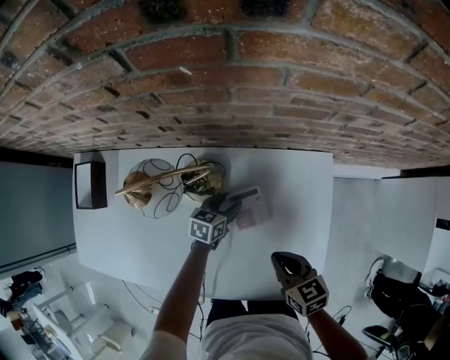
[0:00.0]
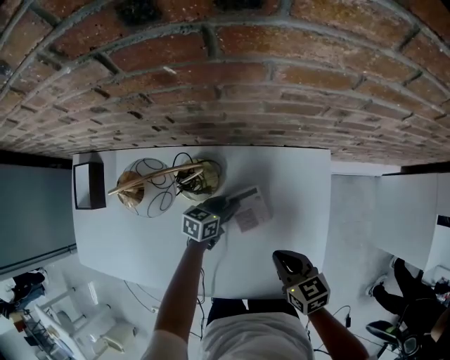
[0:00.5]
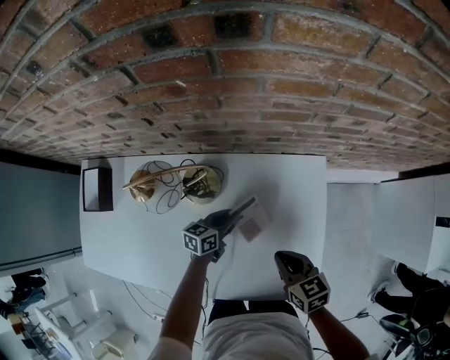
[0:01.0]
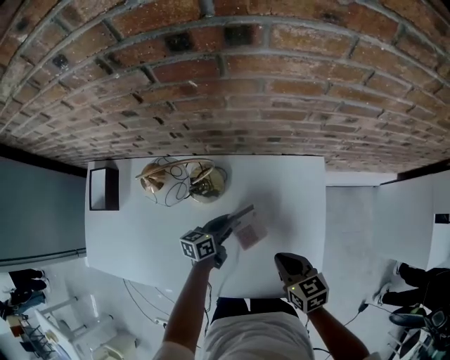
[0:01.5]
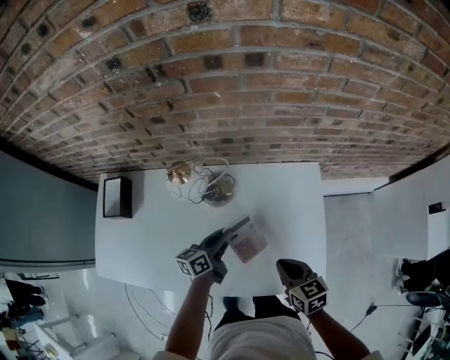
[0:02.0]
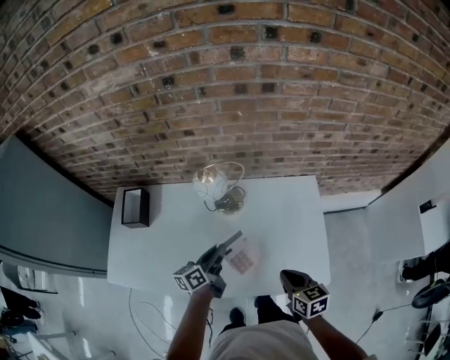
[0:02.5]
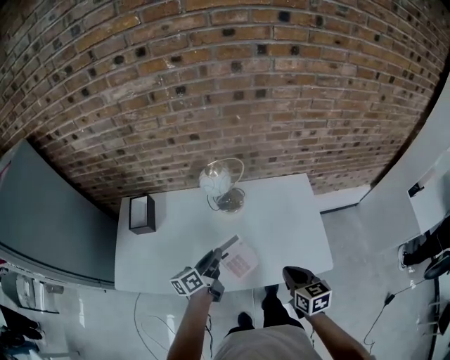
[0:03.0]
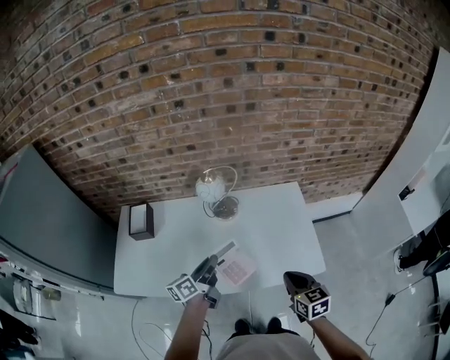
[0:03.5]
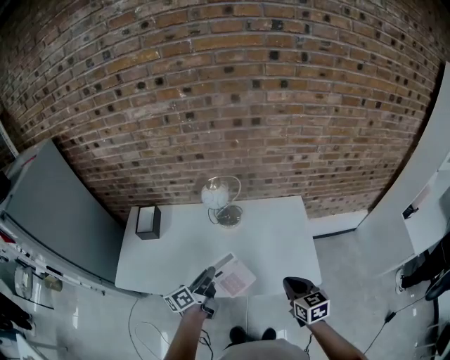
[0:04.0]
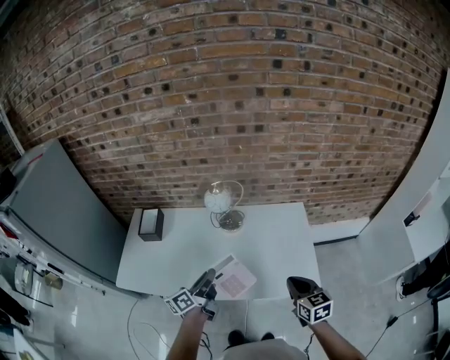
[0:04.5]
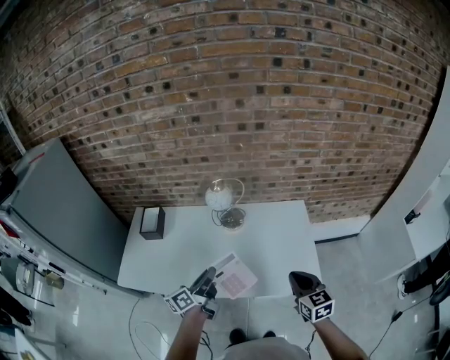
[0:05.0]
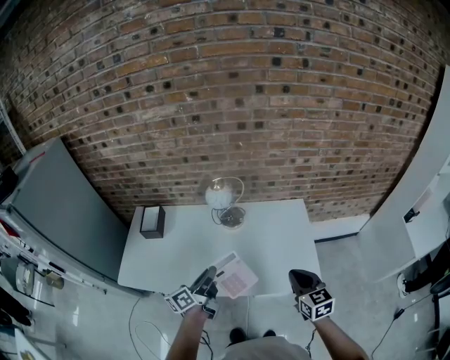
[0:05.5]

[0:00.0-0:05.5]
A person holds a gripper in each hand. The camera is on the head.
0:00.0 to 0:02.0: The left gripper moves upward and backward, about 20 cm, turns by some 30 degrees, and closes. Meanwhile the right gripper goes about 10 cm backward and upward.
0:02.0 to 0:03.5: The right gripper travels backward and upward by about 20 cm, while the left gripper is displaced backward, upward and to the left by some 30 cm.
0:03.5 to 0:05.5: The right gripper shifts approximately 5 cm upward, while the left gripper goes about 5 cm backward.

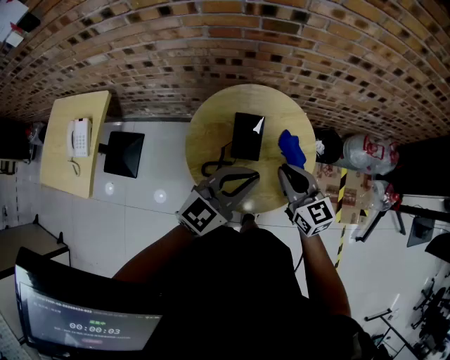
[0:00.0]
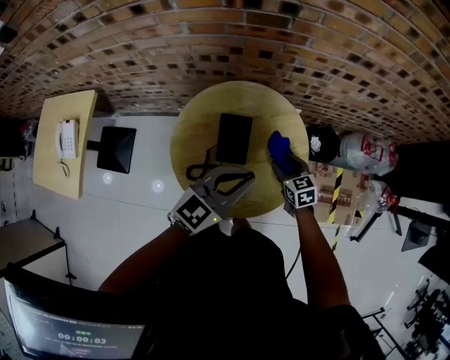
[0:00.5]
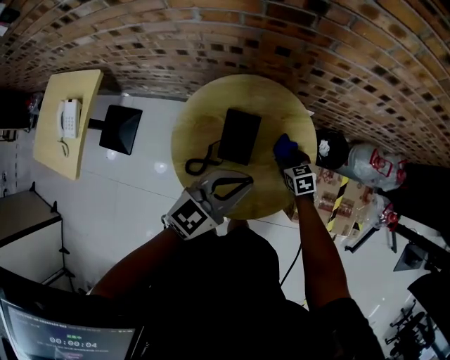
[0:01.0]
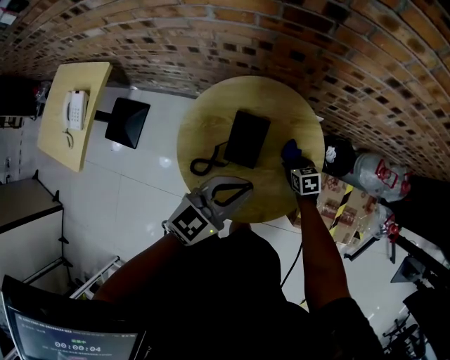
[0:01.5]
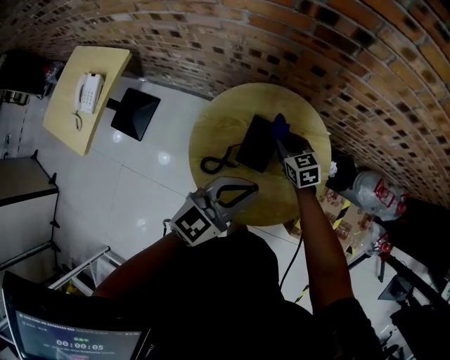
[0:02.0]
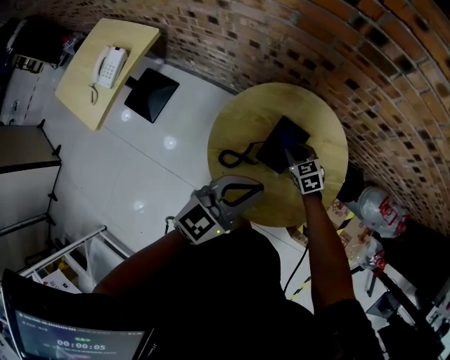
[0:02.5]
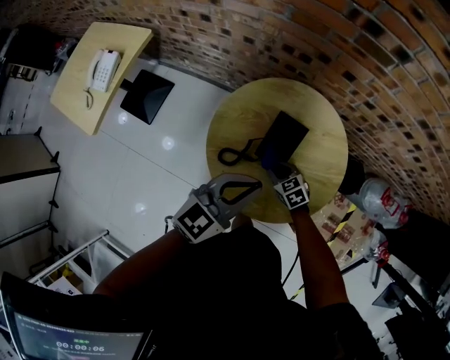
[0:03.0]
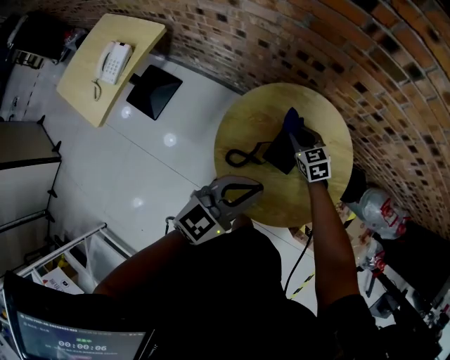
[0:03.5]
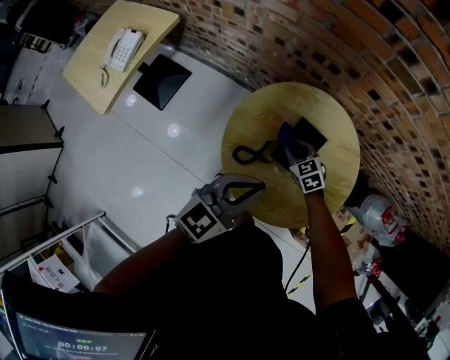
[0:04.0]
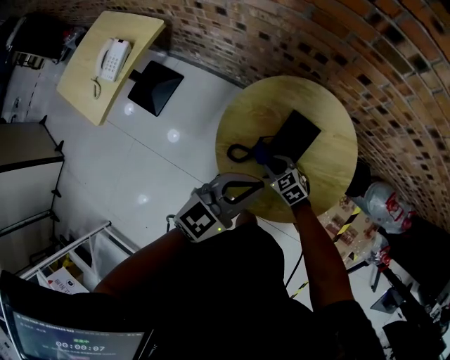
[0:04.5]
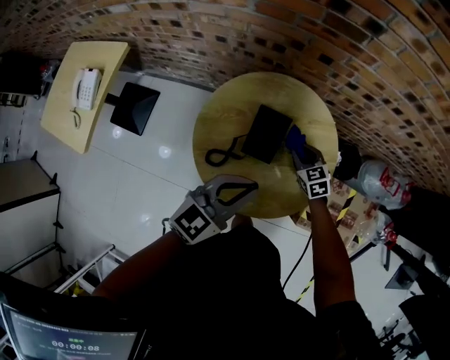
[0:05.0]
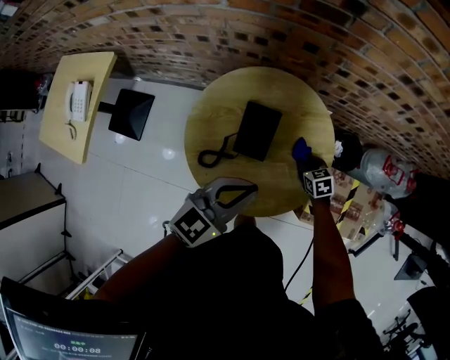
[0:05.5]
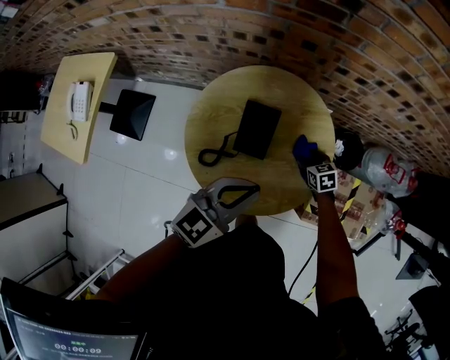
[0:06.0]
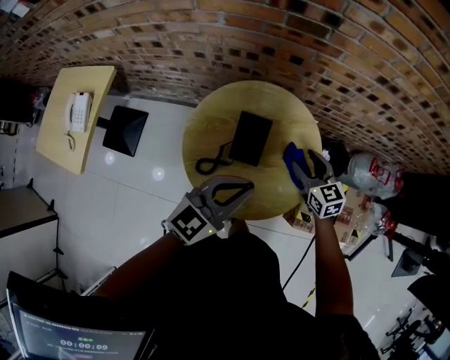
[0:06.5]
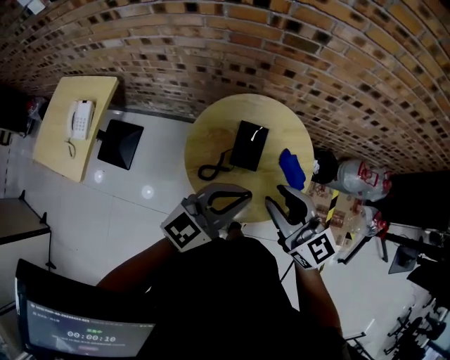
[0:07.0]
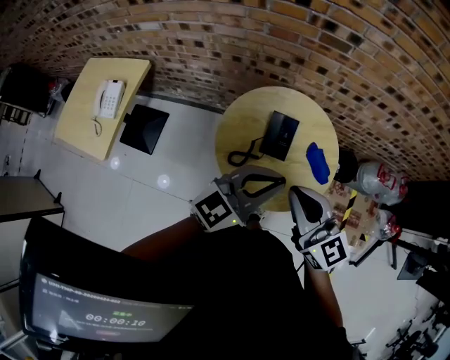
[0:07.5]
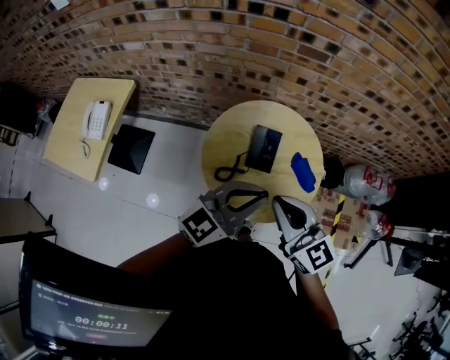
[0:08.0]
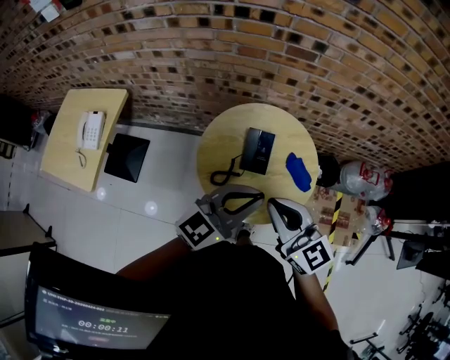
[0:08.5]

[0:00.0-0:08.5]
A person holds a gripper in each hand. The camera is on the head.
0:00.0 to 0:02.0: The left gripper heads downward and forward, covering roughly 10 cm; the right gripper goes roughly 25 cm forward and downward, changes its angle by roughly 30 degrees, and opens and closes again.
0:02.0 to 0:04.0: The left gripper shifts approximately 10 cm to the left. The right gripper goes forward and backward, approximately 15 cm each way, reversing 2 times, and turns by about 20 degrees.
0:04.0 to 0:06.5: The left gripper moves to the right, approximately 10 cm; the right gripper moves to the right and upward, roughly 25 cm, turns by roughly 30 degrees, and opens up.
0:06.5 to 0:08.5: The left gripper moves upward and backward, about 10 cm, while the right gripper travels upward, backward and to the left by some 35 cm, swivels some 20 degrees, and closes up.

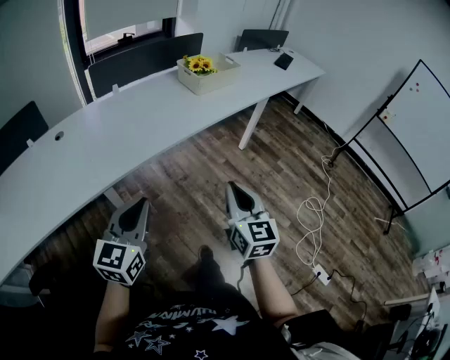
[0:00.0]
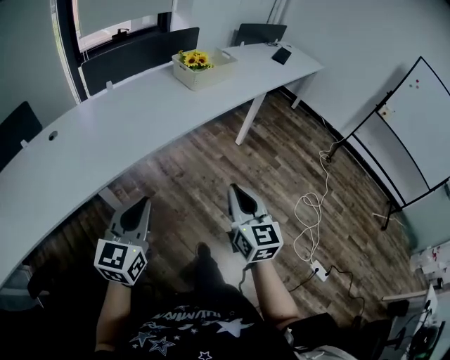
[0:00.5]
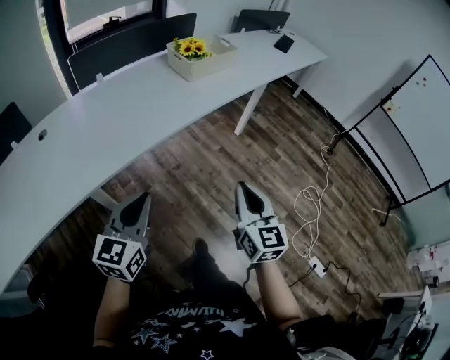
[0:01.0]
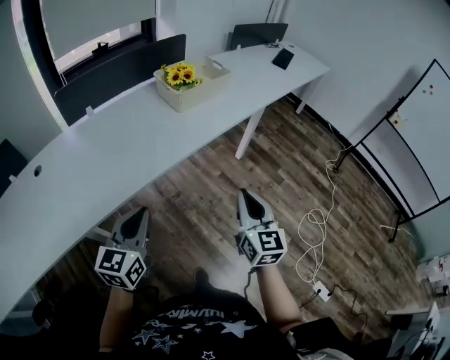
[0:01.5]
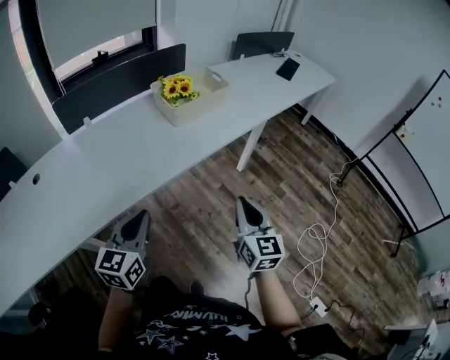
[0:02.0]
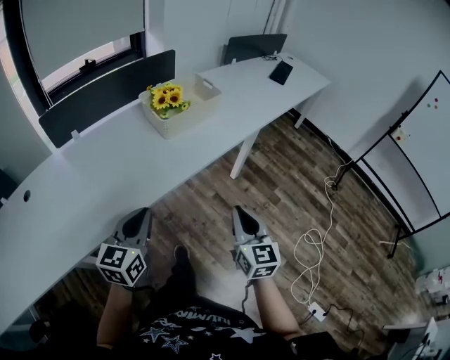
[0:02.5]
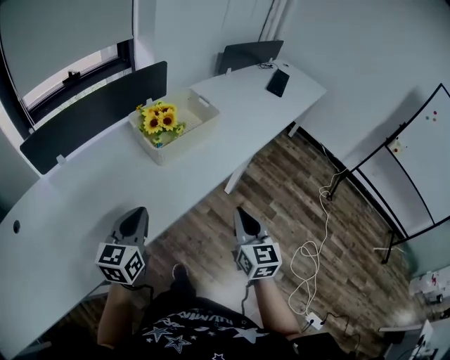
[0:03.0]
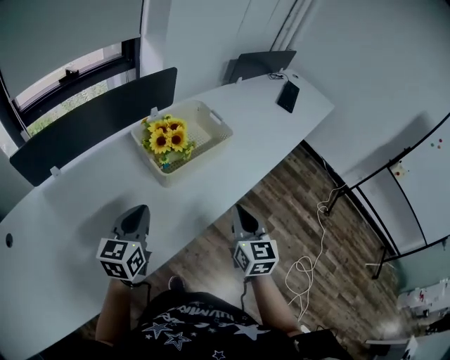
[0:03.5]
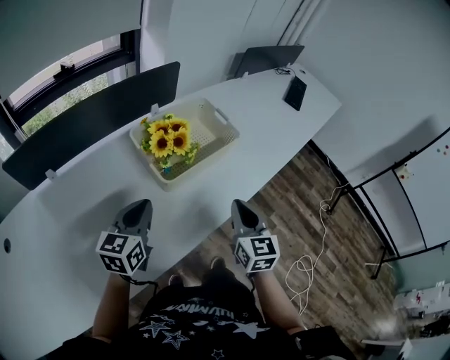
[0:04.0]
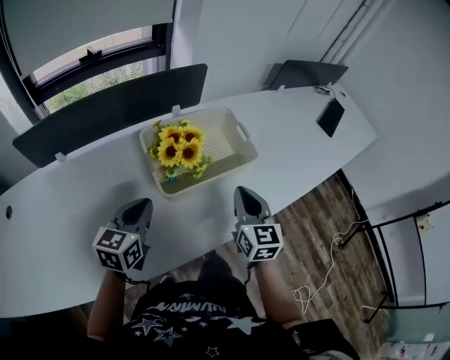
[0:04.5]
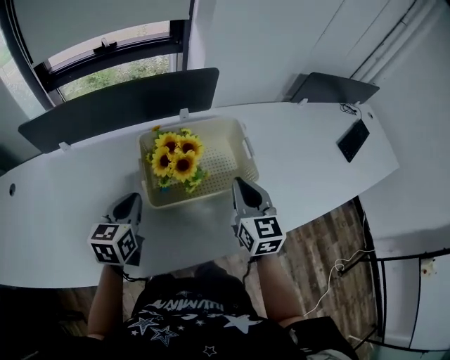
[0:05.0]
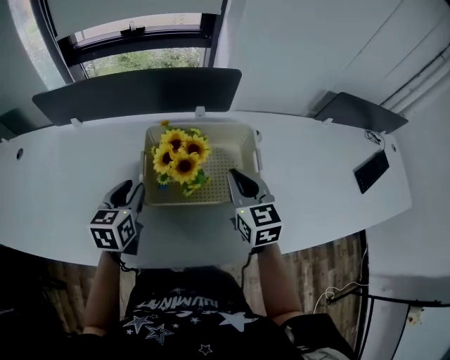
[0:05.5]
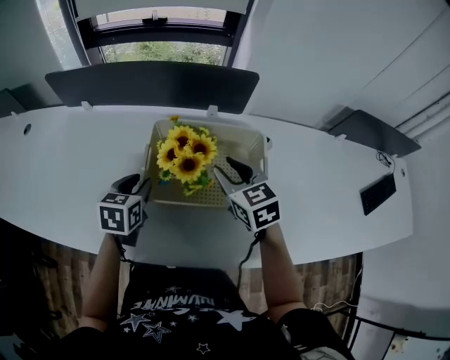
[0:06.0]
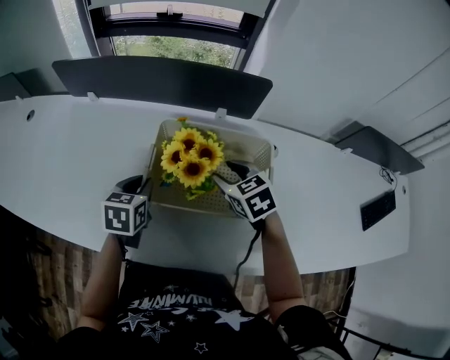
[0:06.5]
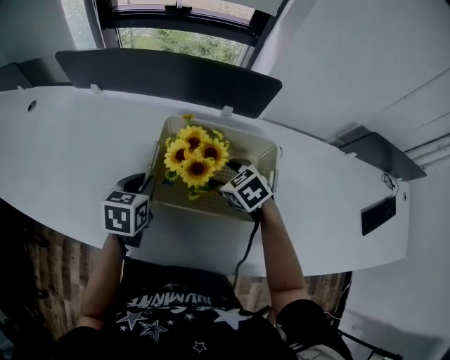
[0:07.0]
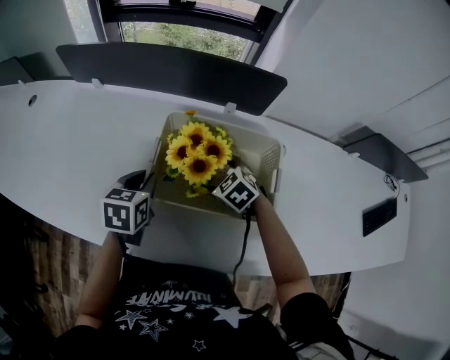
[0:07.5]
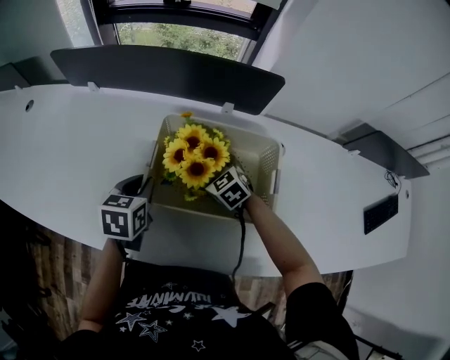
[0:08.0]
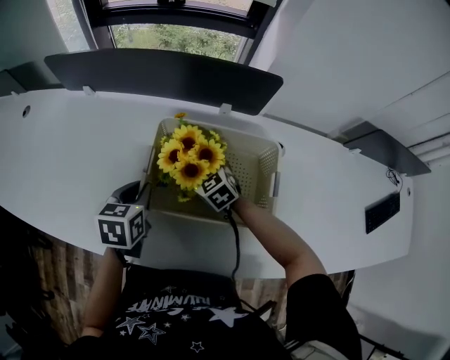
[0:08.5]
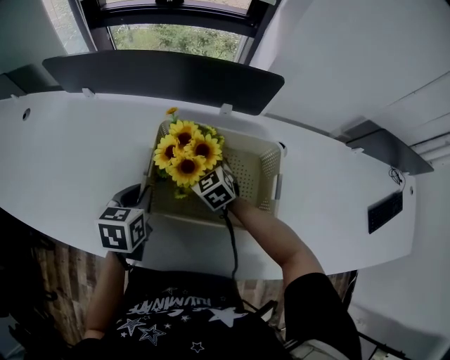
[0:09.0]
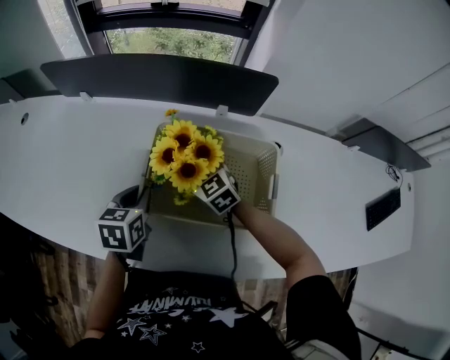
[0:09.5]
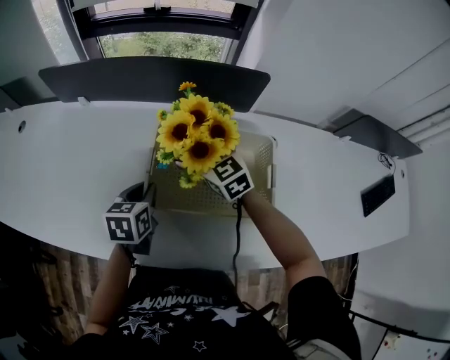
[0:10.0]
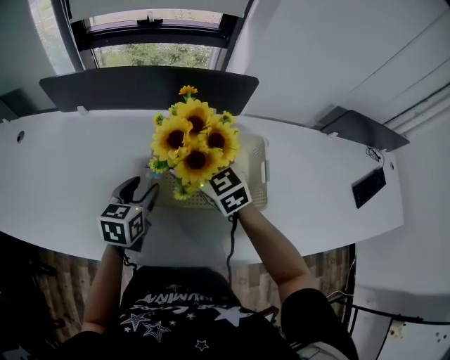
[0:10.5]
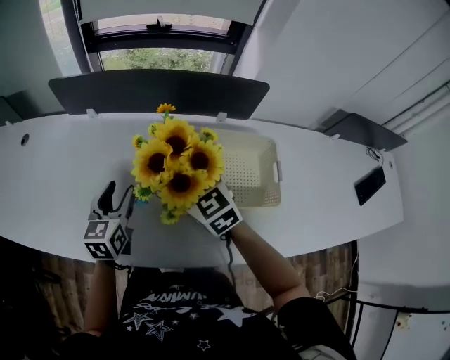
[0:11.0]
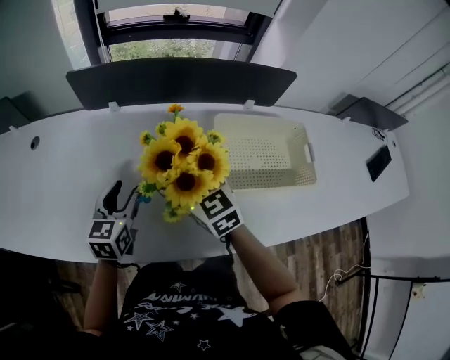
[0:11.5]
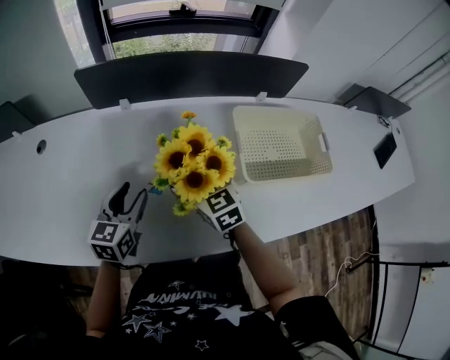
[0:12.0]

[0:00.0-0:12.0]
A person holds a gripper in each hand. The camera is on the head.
0:00.0 to 0:02.0: The two grippers go some 30 cm forward and to the right.
0:02.0 to 0:04.0: The grippers both shift forward by about 35 cm.
0:04.0 to 0:06.0: The left gripper shifts by about 15 cm, rotates some 50 degrees, and opens its fingers, while the right gripper ends up roughly 30 cm from where it was, and changes its angle by some 60 degrees.
0:06.0 to 0:08.0: The right gripper shifts some 15 cm downward, turns by some 30 degrees, and opens.
0:08.0 to 0:10.0: The right gripper heads upward, covering approximately 15 cm, and changes its angle by some 20 degrees.
0:10.0 to 0:12.0: Both grippers move to the left, approximately 30 cm. The left gripper turns by roughly 30 degrees, and opens.
